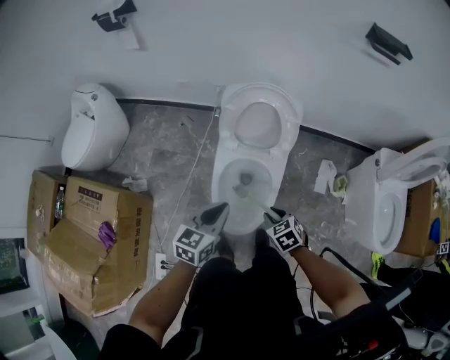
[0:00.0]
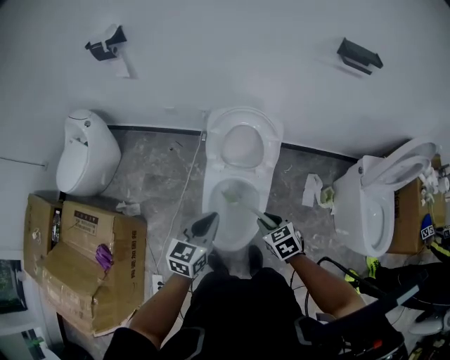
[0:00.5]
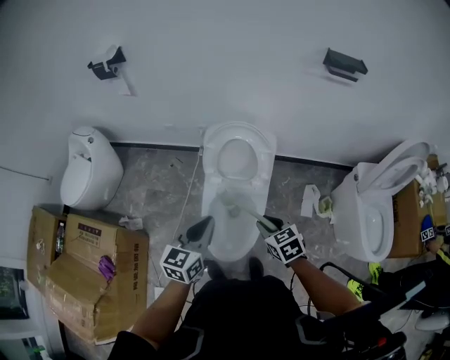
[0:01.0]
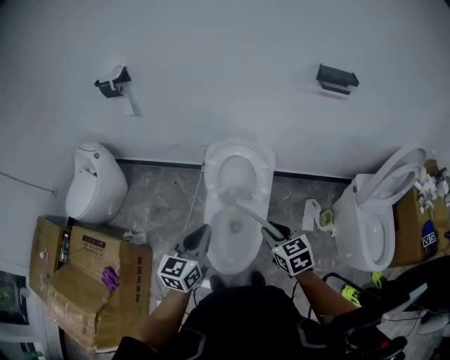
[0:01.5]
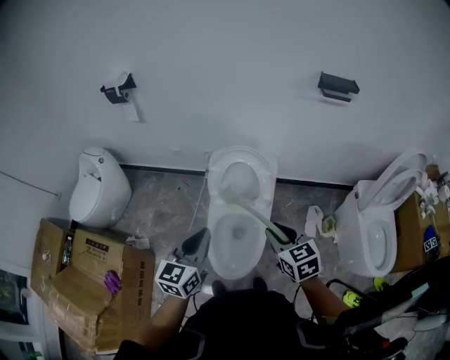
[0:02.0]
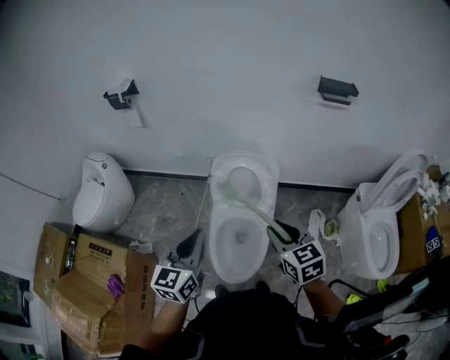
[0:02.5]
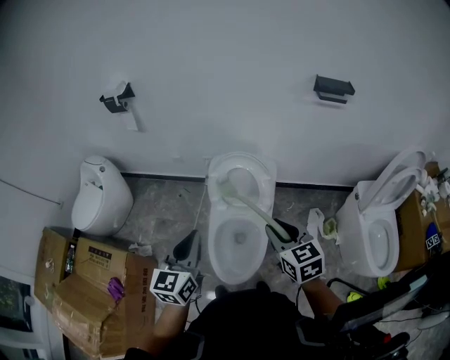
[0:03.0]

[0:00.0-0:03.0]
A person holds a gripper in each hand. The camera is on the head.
0:00.0 to 0:01.5: The right gripper travels upward by some 20 cm, and turns by about 20 degrees; the left gripper travels upward by roughly 15 cm.
0:01.5 to 0:03.0: Both grippers travel together upward, roughly 10 cm.

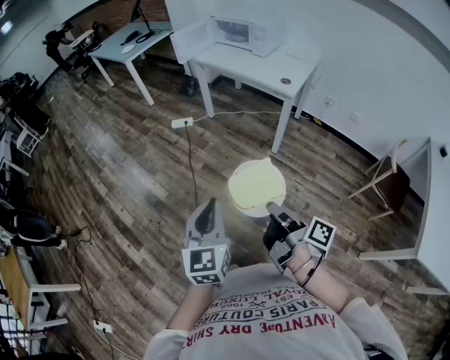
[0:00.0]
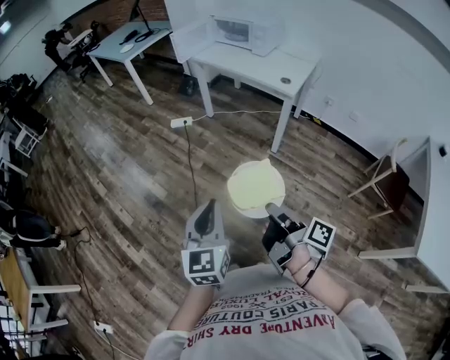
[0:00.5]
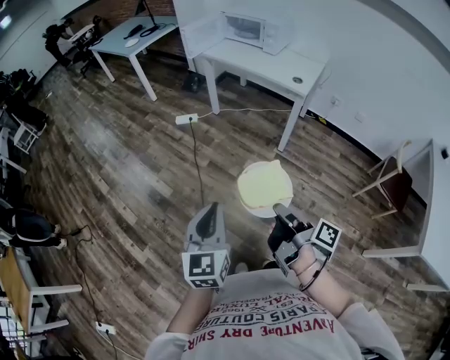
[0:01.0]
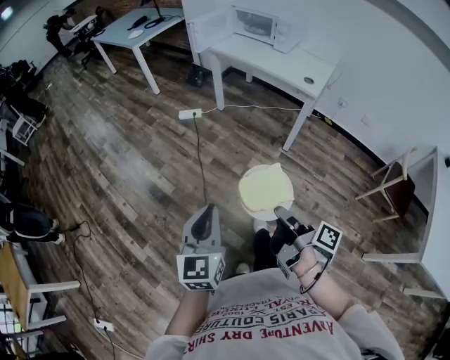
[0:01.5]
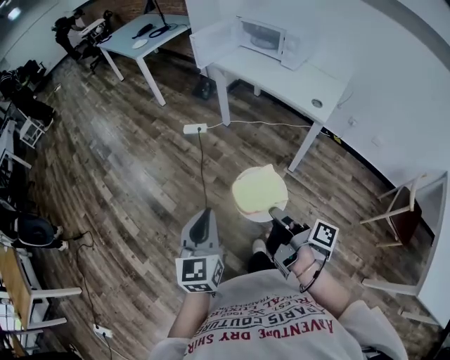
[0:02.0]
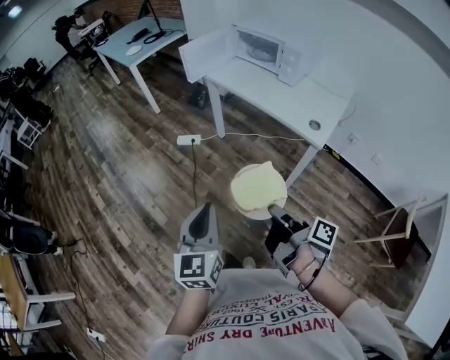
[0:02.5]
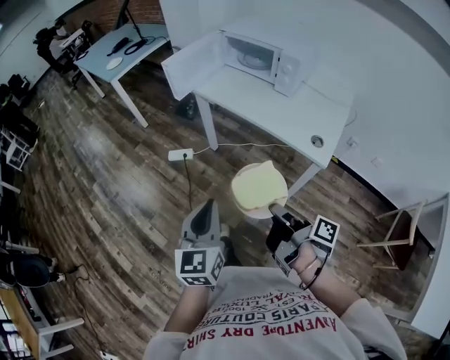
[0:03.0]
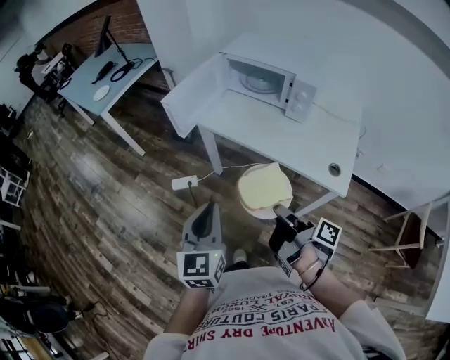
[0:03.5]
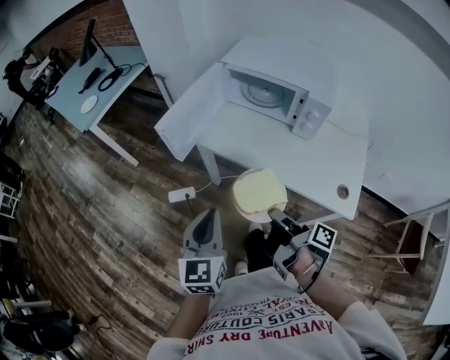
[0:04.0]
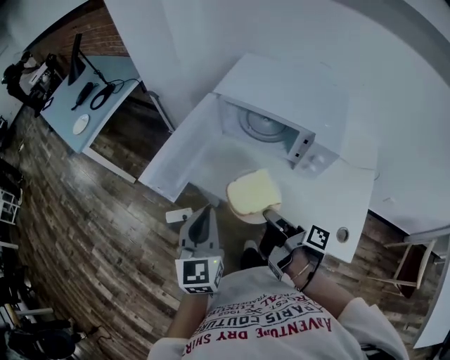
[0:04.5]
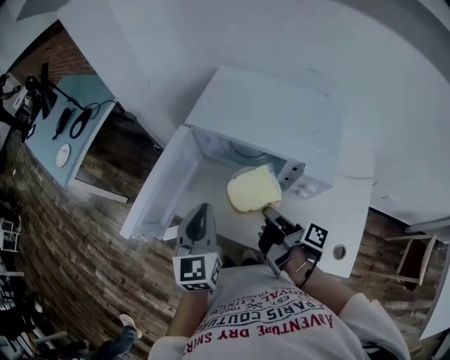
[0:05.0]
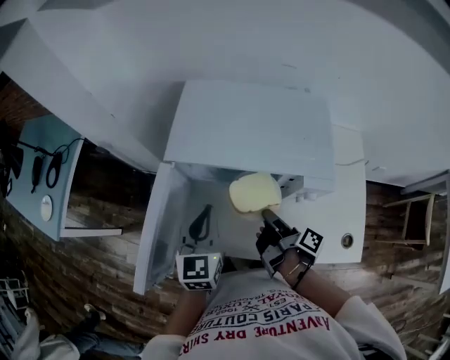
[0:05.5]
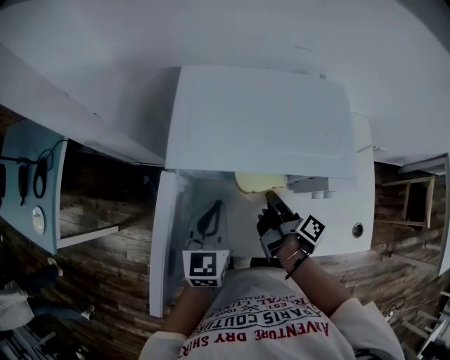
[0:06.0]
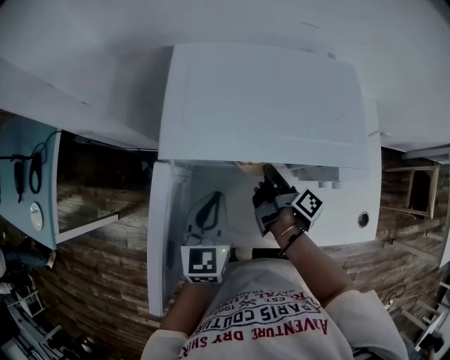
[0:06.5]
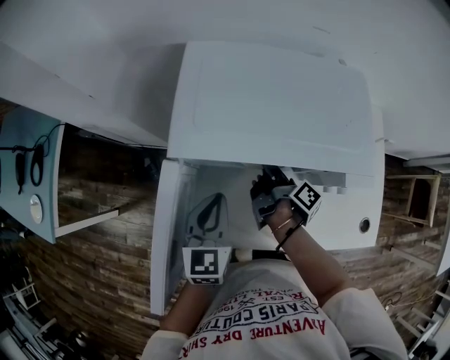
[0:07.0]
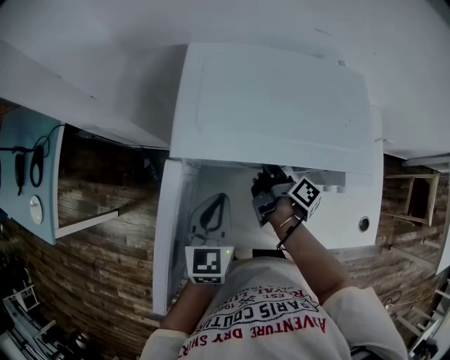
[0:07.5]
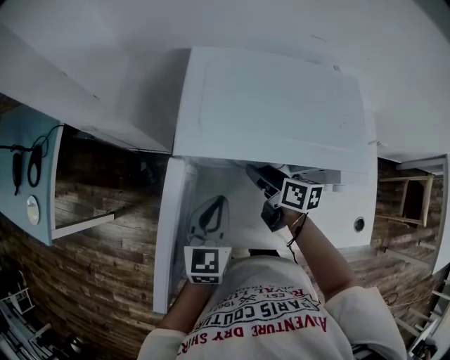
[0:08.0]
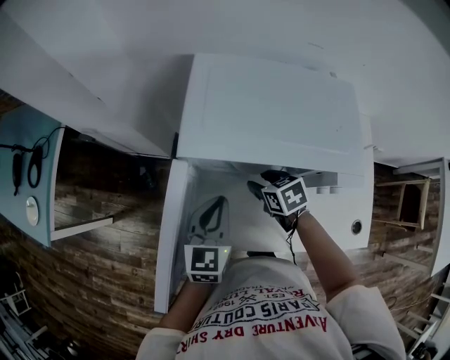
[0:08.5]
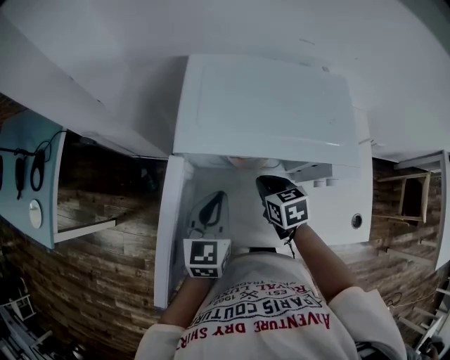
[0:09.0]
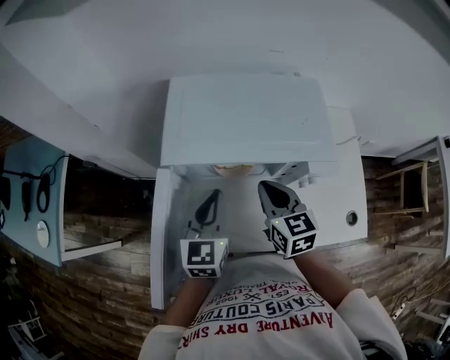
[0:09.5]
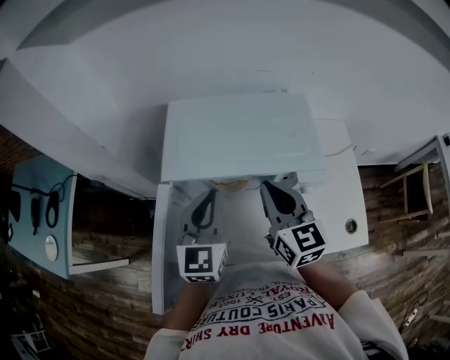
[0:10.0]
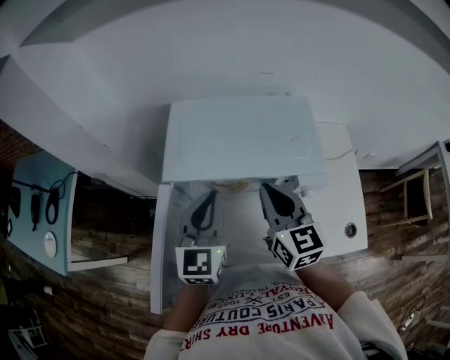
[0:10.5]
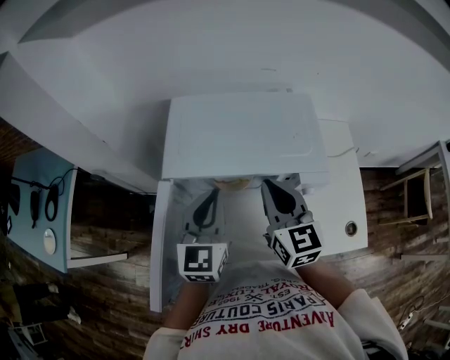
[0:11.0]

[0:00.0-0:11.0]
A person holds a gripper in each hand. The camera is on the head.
0:00.0 to 0:02.0: The left gripper moves some 20 cm.
0:02.0 to 0:03.5: The left gripper ends up about 50 cm from where it was.
0:03.5 to 0:05.5: The left gripper shifts by approximately 50 cm, and swivels approximately 20 degrees.
0:05.5 to 0:07.5: The left gripper goes roughly 5 cm downward.
0:09.0 to 0:11.0: The left gripper moves upward, roughly 10 cm.

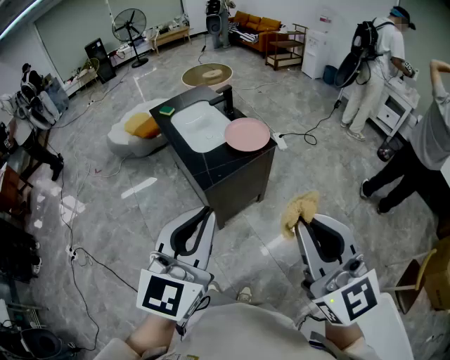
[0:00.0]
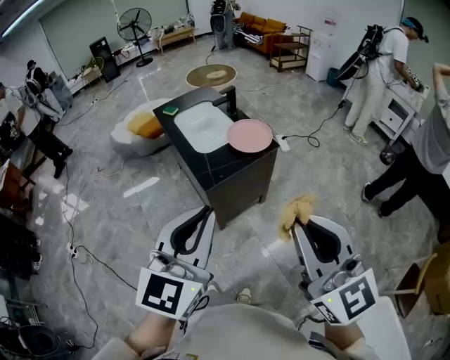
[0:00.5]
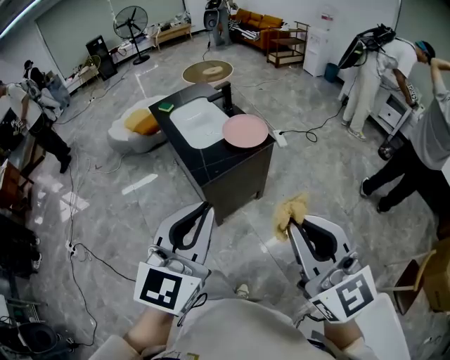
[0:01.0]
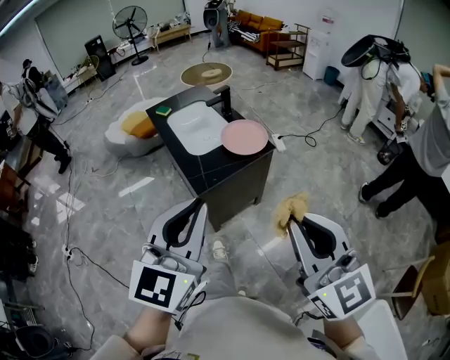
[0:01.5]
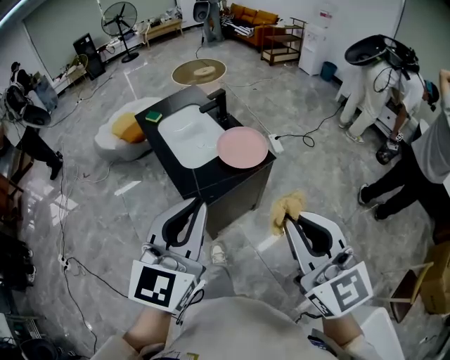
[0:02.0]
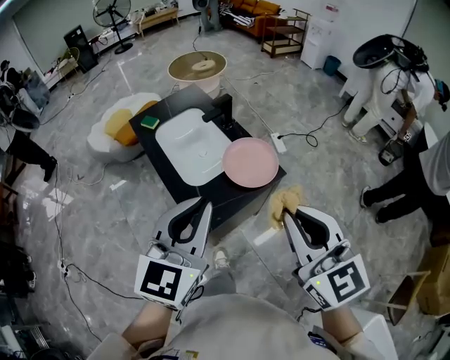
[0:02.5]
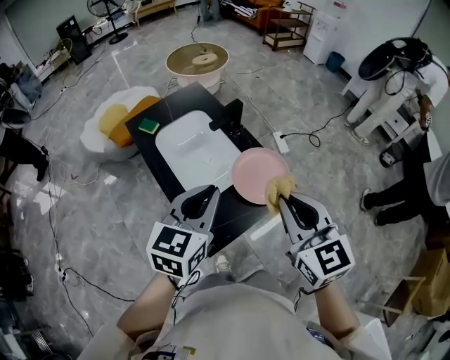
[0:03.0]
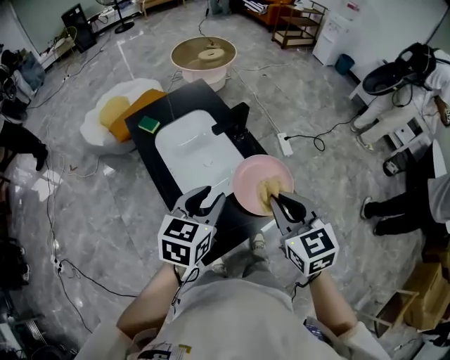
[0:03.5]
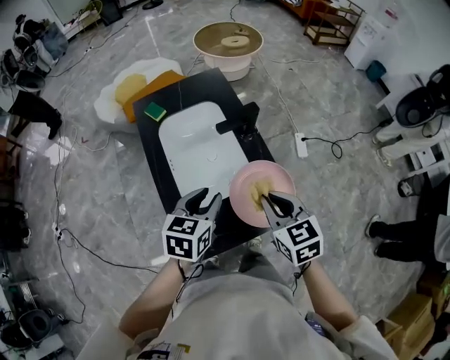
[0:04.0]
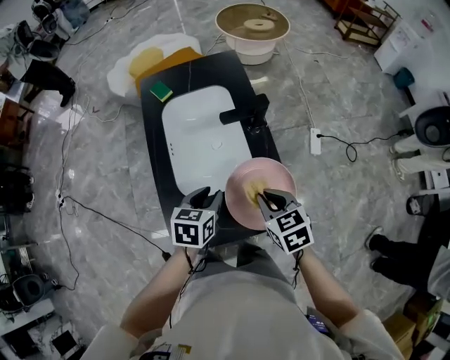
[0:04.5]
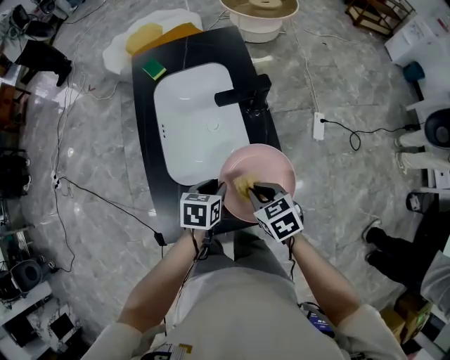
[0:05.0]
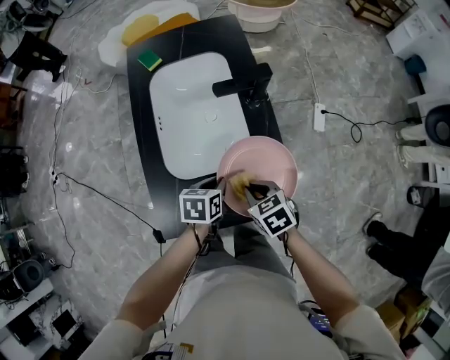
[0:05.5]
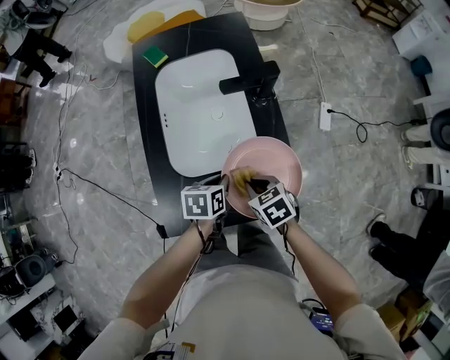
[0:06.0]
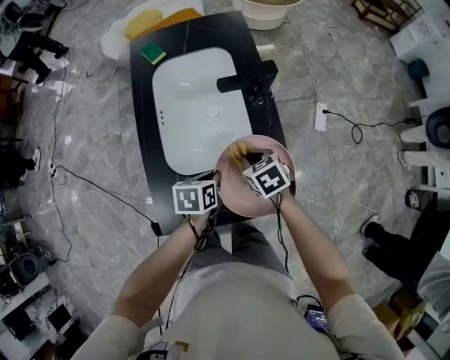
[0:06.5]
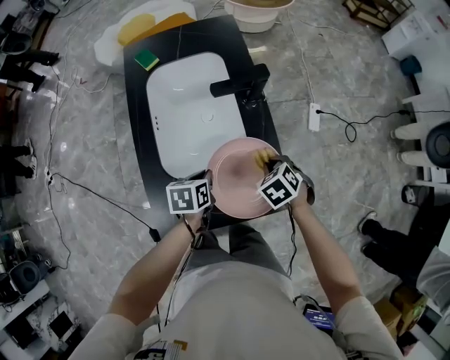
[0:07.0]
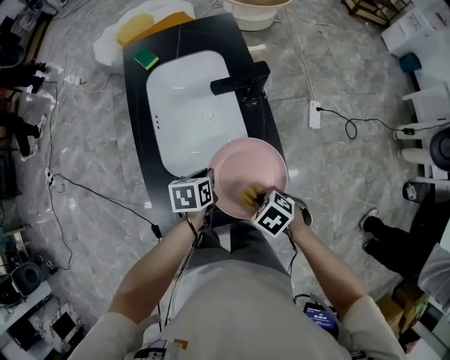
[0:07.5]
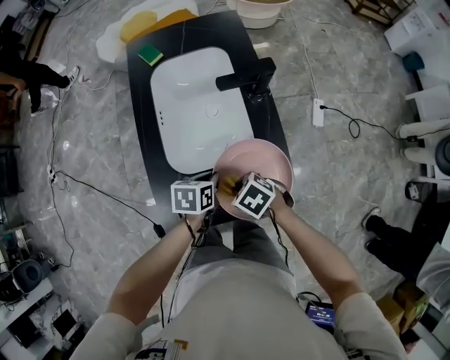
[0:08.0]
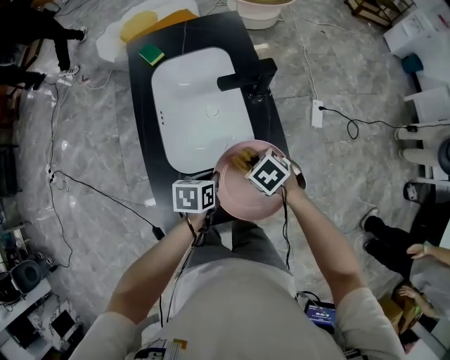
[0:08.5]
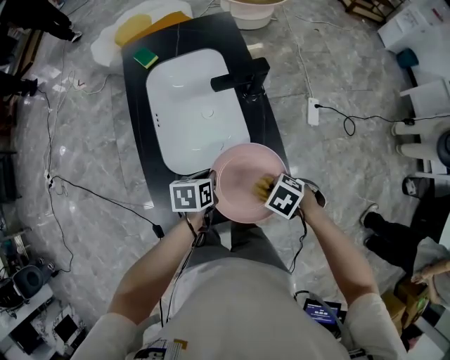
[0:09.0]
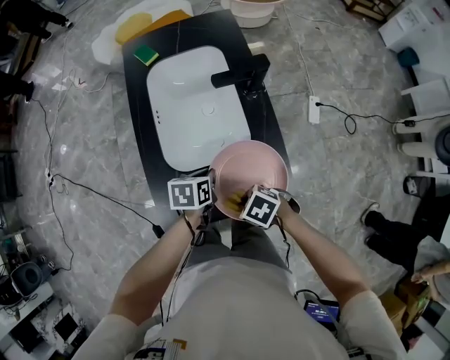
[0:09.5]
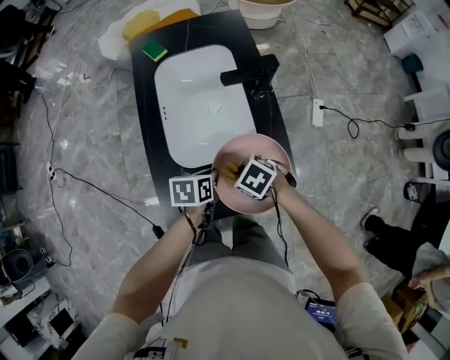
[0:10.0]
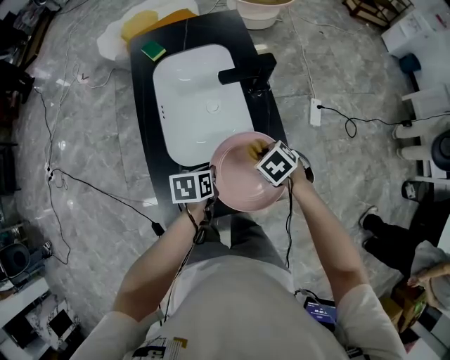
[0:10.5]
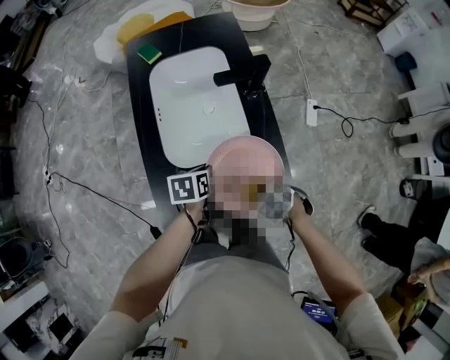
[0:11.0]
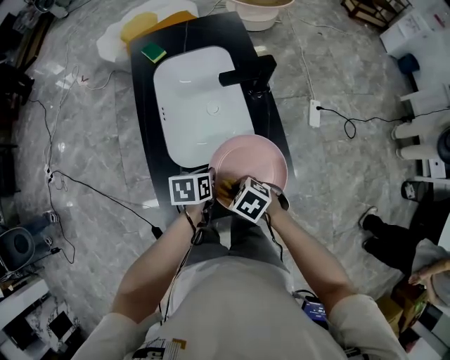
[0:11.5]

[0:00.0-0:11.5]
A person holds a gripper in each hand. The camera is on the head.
0:00.0 to 0:02.0: Both grippers move forward, roughly 15 cm.
0:02.0 to 0:04.0: The two grippers go approximately 50 cm forward and downward. The right gripper tips its fingers downward by approximately 30 degrees, while the left gripper tilts its fingers about 30 degrees downward, and opens its fingers.
0:04.0 to 0:06.0: The grippers both shift downward by approximately 20 cm. The left gripper turns by roughly 30 degrees, and closes its fingers; the right gripper turns by about 30 degrees.
0:06.0 to 0:07.5: The right gripper shifts by approximately 5 cm, and swivels approximately 30 degrees.

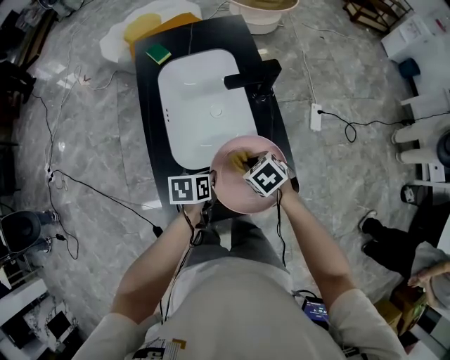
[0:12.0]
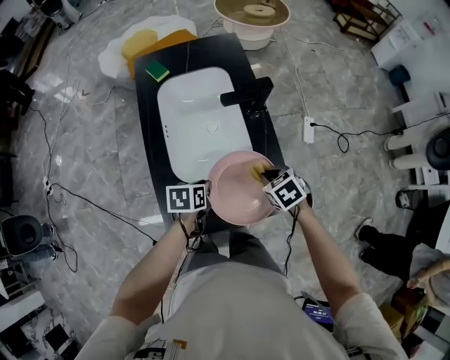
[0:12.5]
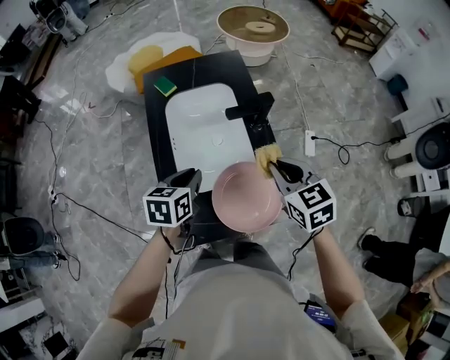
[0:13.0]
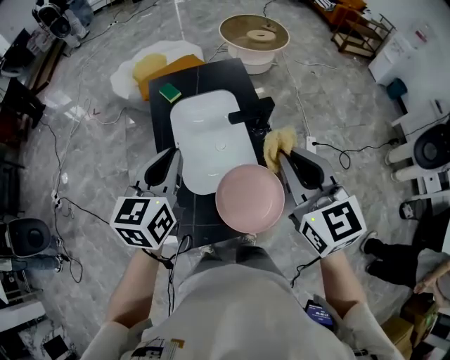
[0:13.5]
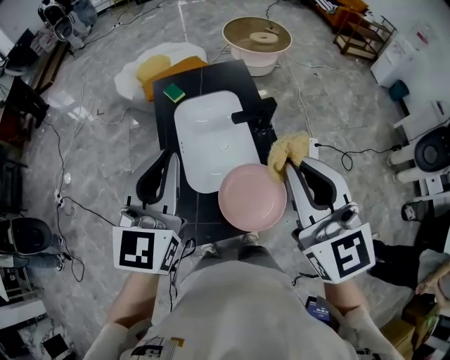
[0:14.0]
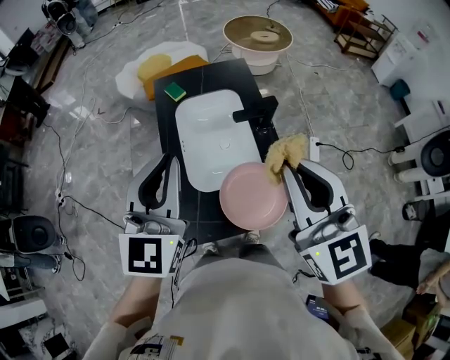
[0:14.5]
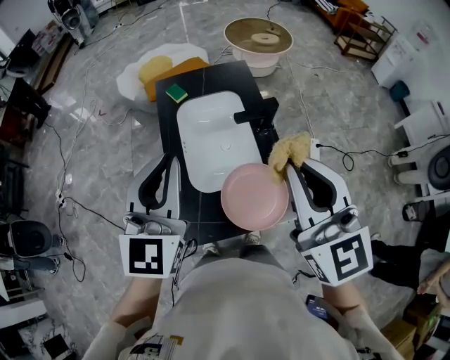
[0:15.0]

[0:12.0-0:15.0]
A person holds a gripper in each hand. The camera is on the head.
0:12.0 to 0:13.5: Both grippers move upward, roughly 35 cm. The left gripper tips its fingers upward by about 40 degrees; the right gripper tips its fingers upward by some 50 degrees.
0:13.5 to 0:15.0: The left gripper goes some 10 cm upward and backward, and rotates roughly 30 degrees; the right gripper goes some 5 cm upward.
